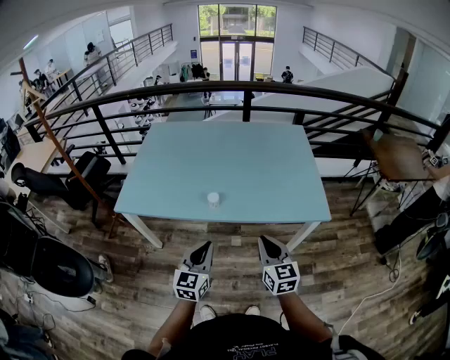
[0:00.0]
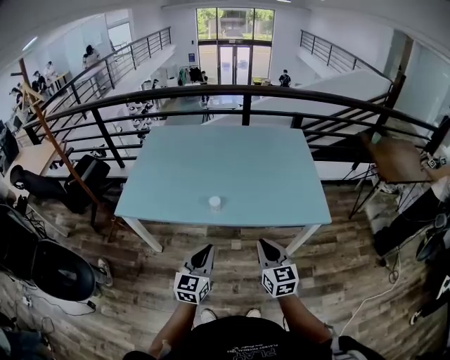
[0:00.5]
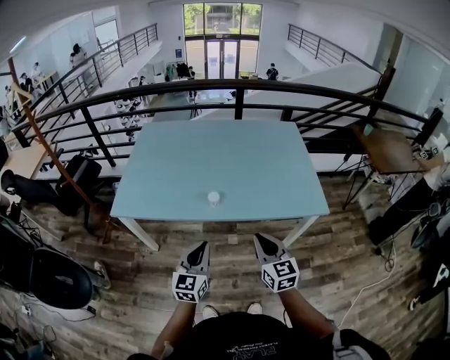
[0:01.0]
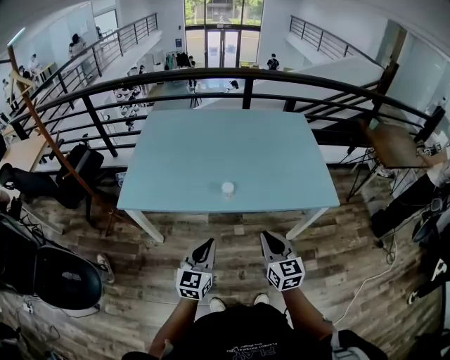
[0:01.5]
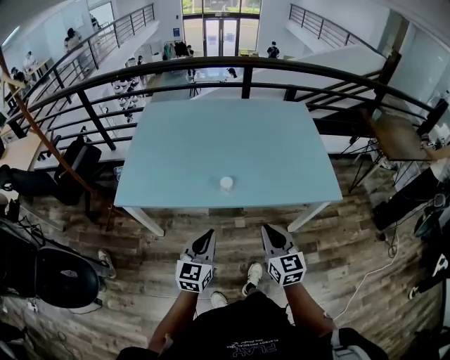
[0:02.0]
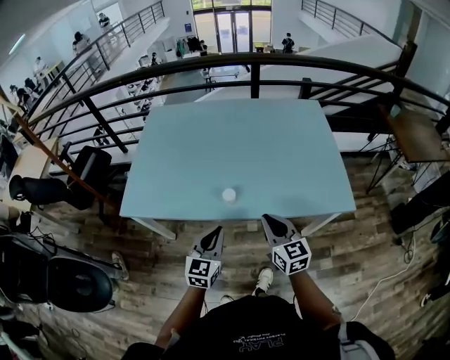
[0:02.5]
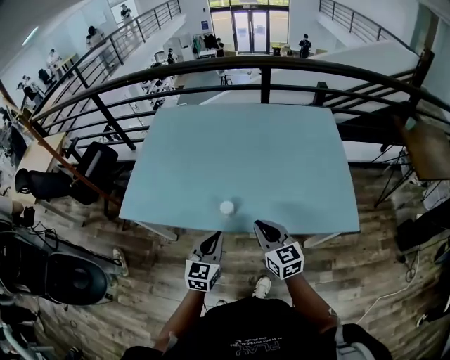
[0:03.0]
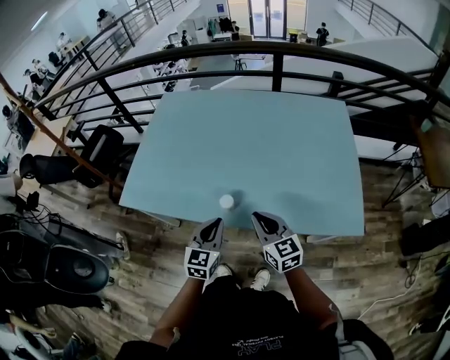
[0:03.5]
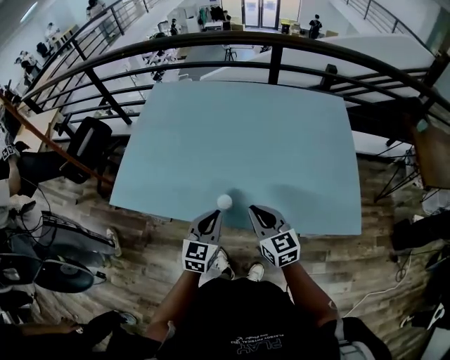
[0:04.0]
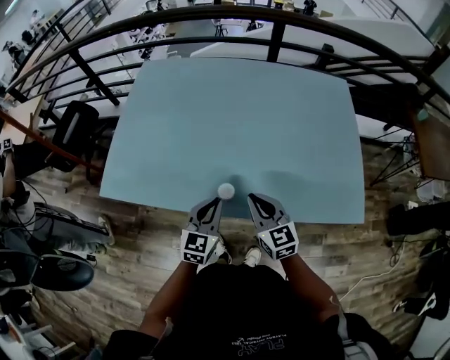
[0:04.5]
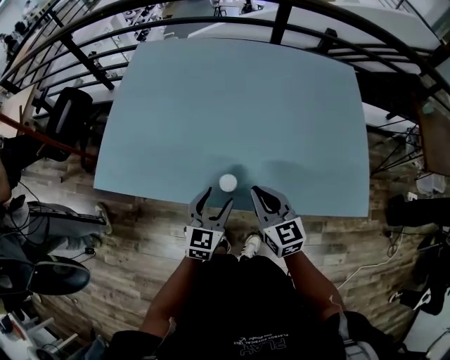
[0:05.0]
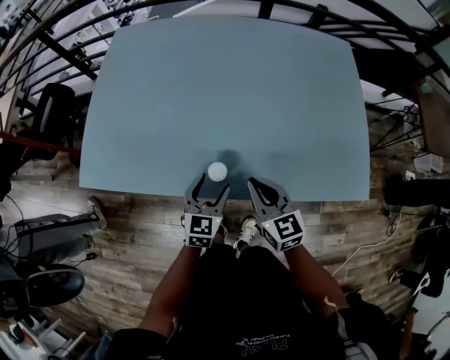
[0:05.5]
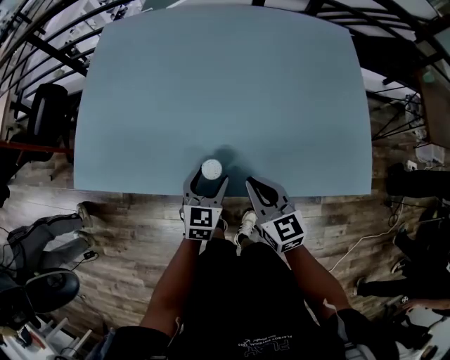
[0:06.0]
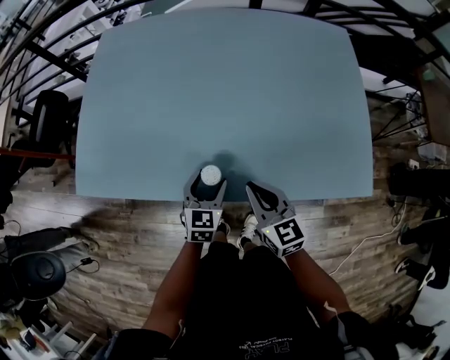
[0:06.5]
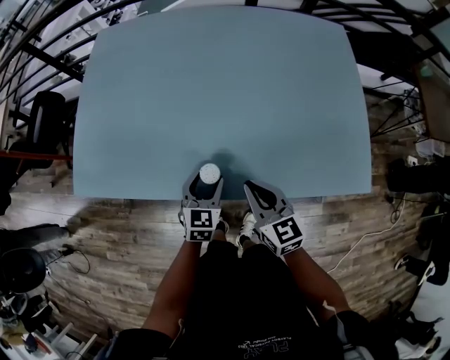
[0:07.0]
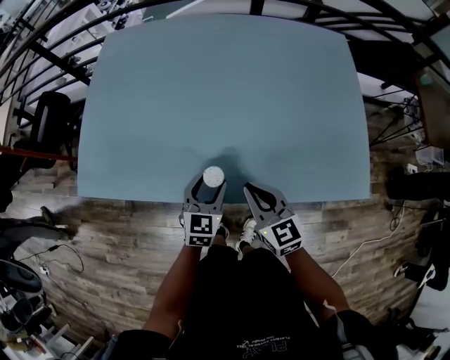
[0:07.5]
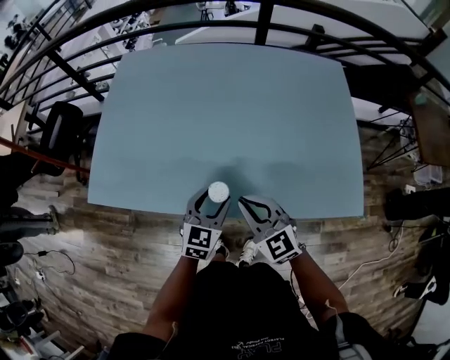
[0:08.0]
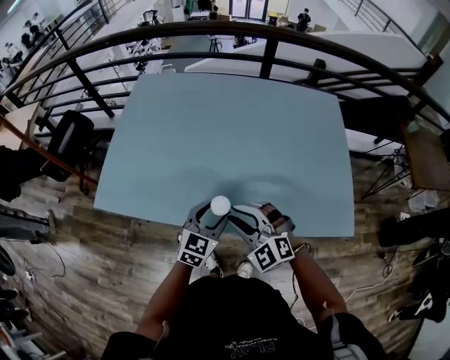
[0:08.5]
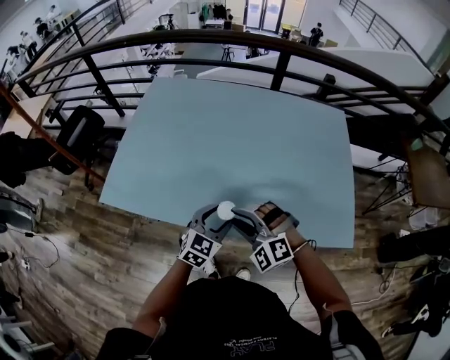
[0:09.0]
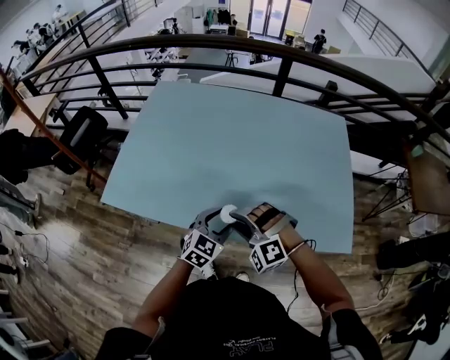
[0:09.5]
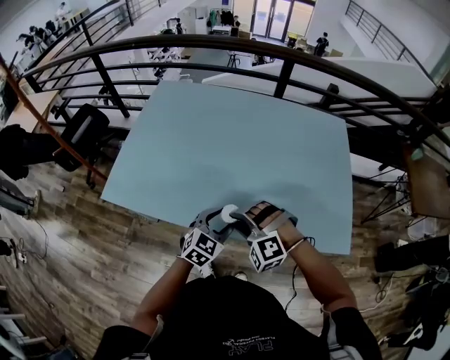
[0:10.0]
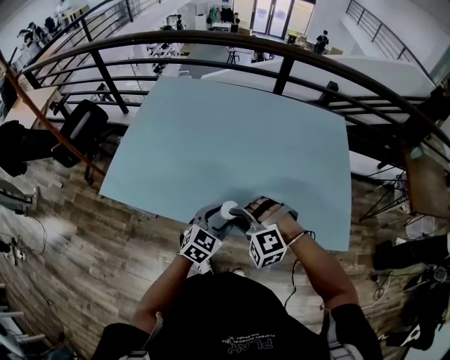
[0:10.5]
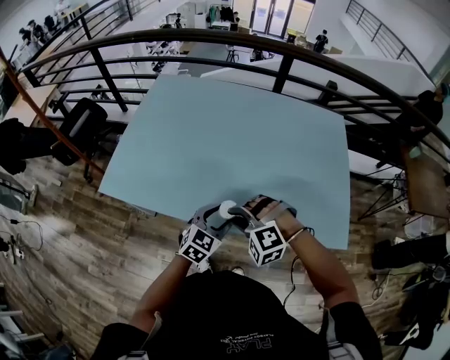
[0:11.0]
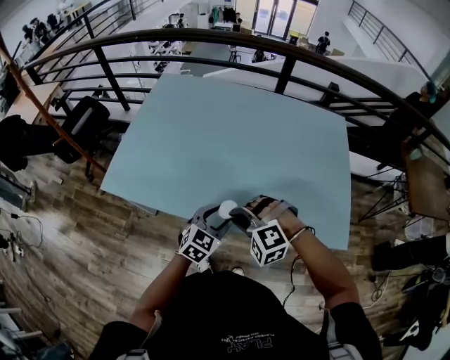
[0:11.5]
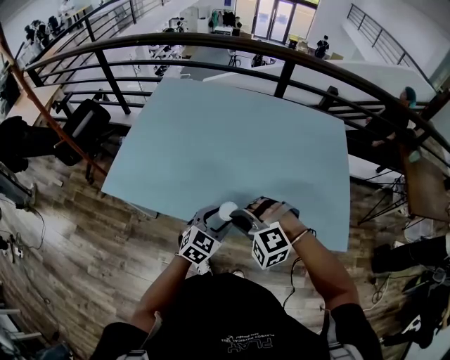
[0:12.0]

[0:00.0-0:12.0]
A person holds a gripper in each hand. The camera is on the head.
0.0 to 2.0 s: Both grippers move to the left, roughly 10 cm.
2.0 to 4.0 s: Both grippers travel together forward, some 20 cm. The right gripper turns by some 20 degrees.
4.0 to 6.0 s: The right gripper is displaced downward by approximately 10 cm. Meanwhile the left gripper is displaced downward and forward by roughly 15 cm, and opens its fingers.
6.0 to 8.0 s: Both grippers travel together upward, about 10 cm. The right gripper rotates about 30 degrees.
8.0 to 10.0 s: The left gripper moves some 5 cm. The right gripper moves roughly 5 cm, twists roughly 60 degrees counterclockwise, seen from behind, and opens its fingers.
10.0 to 12.0 s: The grippers stay close to where they were, moving slightly.

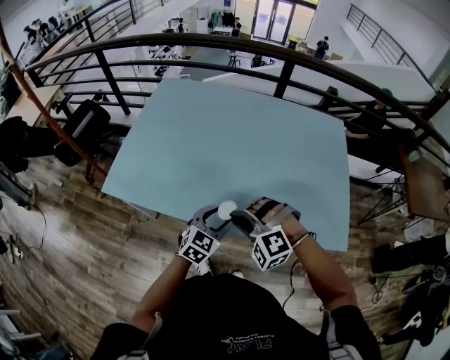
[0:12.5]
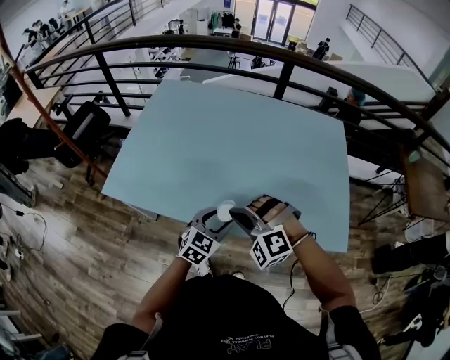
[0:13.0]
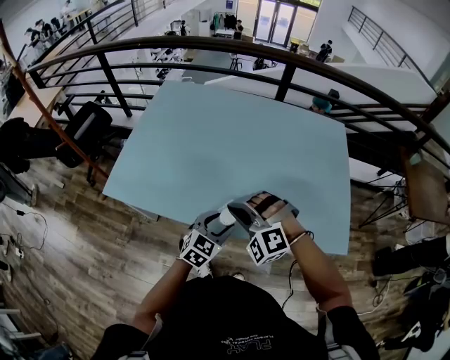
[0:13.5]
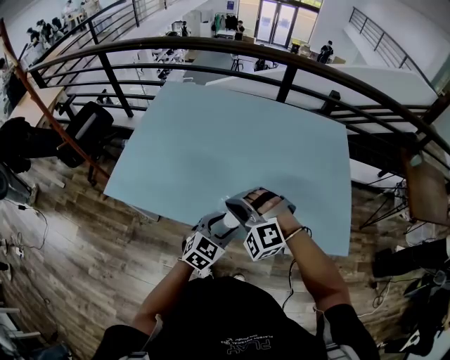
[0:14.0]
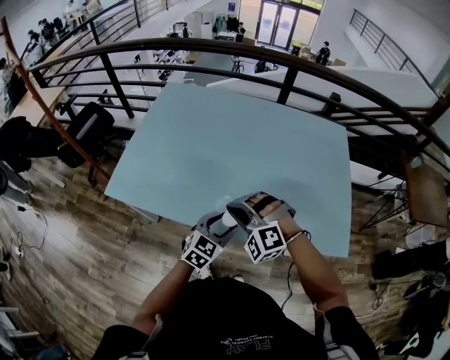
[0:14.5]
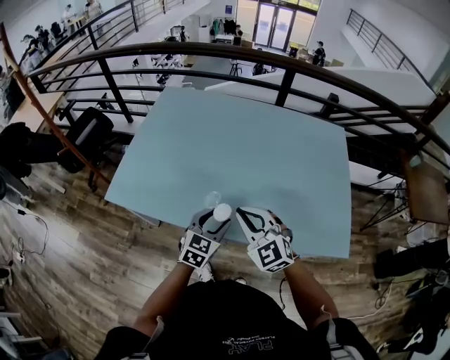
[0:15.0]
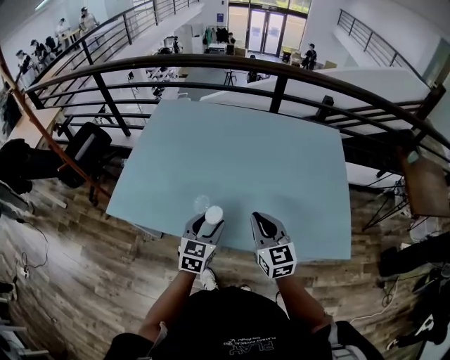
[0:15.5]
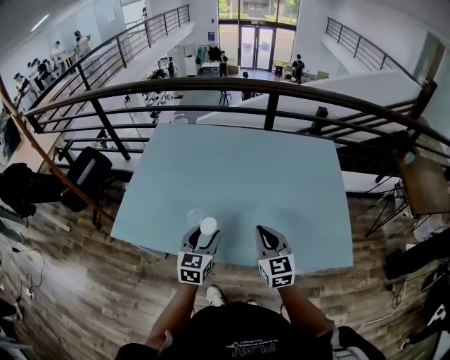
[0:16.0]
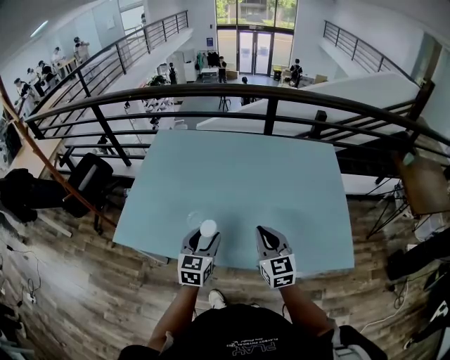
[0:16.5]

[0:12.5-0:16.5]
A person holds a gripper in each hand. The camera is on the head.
12.5 to 14.5 s: There are only small adjustments of the grippers.
14.5 to 16.5 s: The left gripper is displaced to the left, upward and forward by some 10 cm, and swivels some 20 degrees. Meanwhile the right gripper is displaced to the right by approximately 10 cm, and rolls clockwise, seen from behind, by roughly 70 degrees.

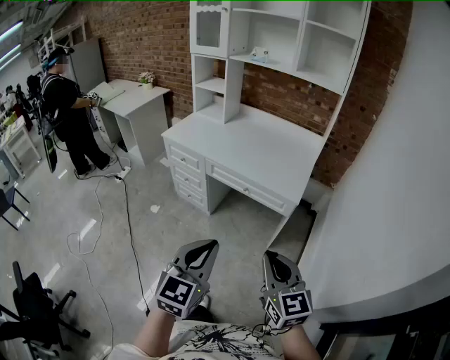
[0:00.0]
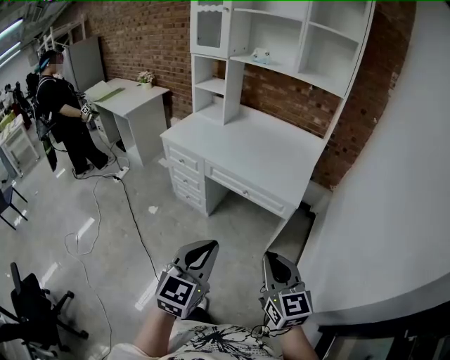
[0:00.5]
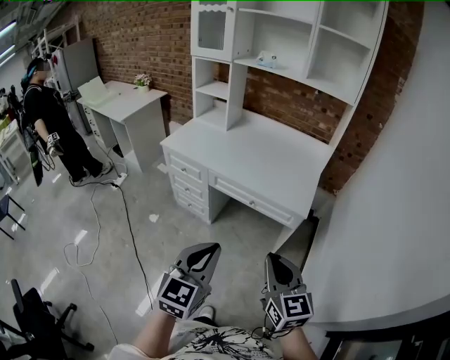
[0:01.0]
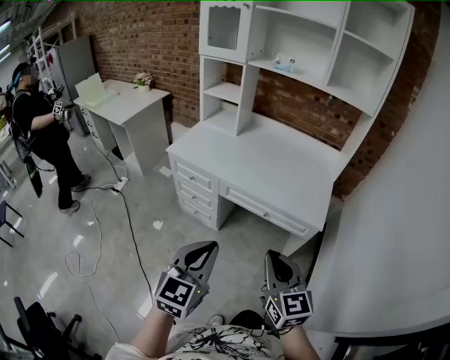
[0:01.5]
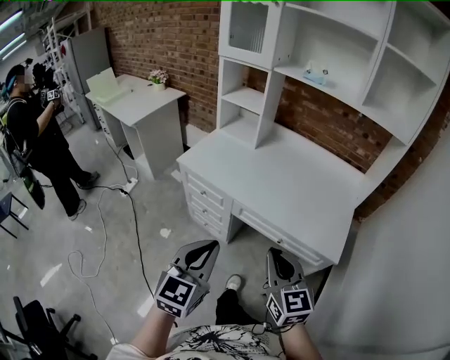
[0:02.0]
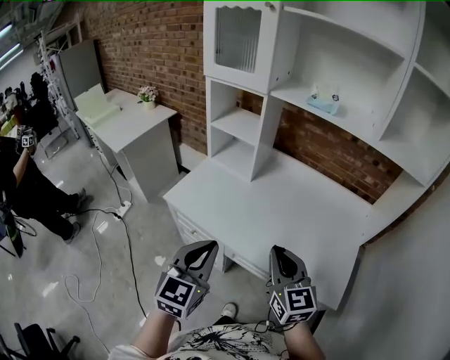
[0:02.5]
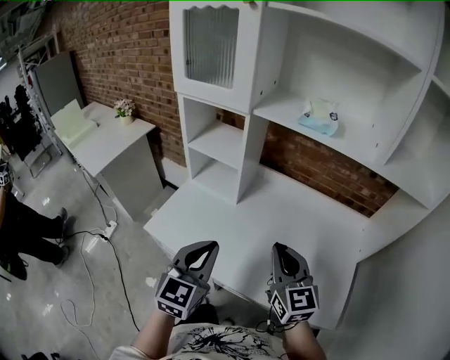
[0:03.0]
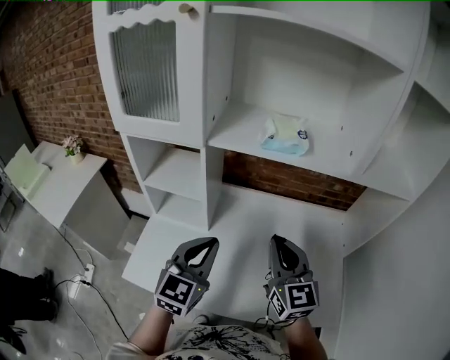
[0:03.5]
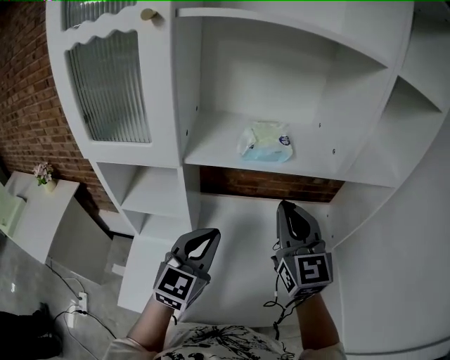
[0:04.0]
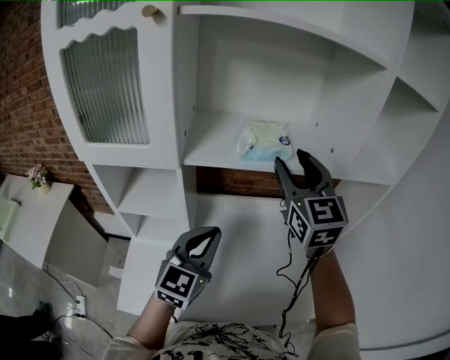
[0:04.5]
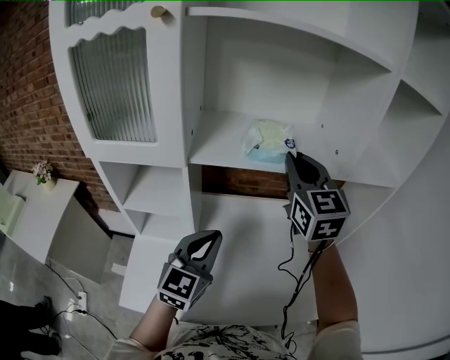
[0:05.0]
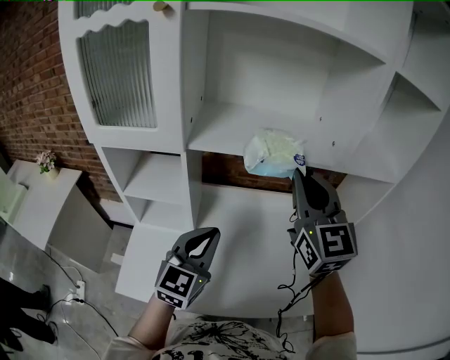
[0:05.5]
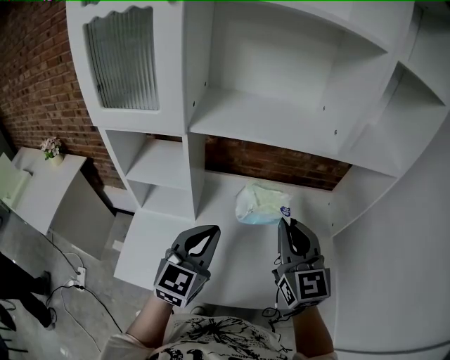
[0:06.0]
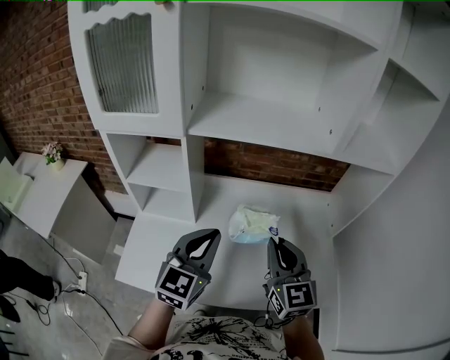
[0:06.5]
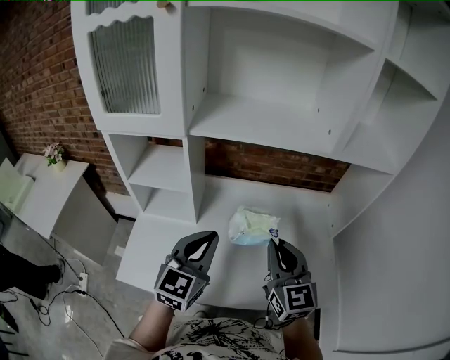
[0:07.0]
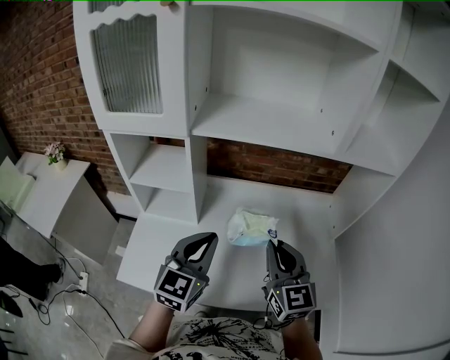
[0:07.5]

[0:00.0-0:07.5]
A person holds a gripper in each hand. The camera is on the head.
0.0 to 2.0 s: Both grippers move forward and to the left, some 35 cm.
2.0 to 4.0 s: The two grippers travel together, some 60 cm. The right gripper swivels about 40 degrees. The left gripper rotates approximately 30 degrees.
4.0 to 5.5 s: The right gripper moves upward, approximately 5 cm, travels forward and back again, about 10 cm each way, and opens, then closes again.
5.5 to 7.5 s: The right gripper travels downward and backward by approximately 20 cm. The left gripper moves about 5 cm.

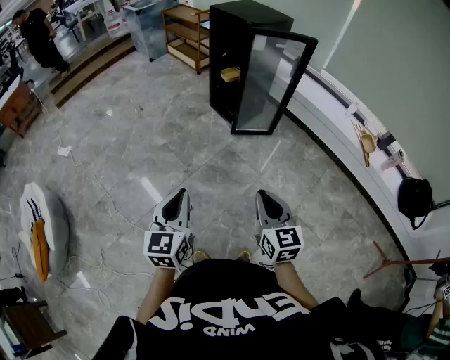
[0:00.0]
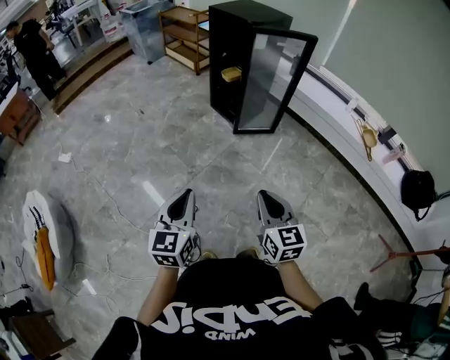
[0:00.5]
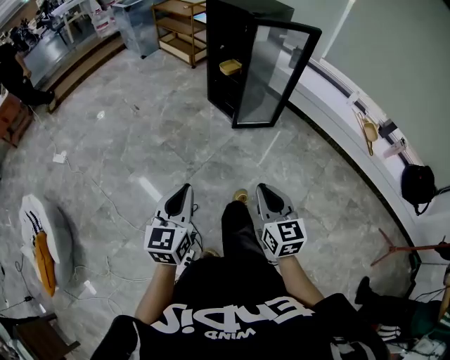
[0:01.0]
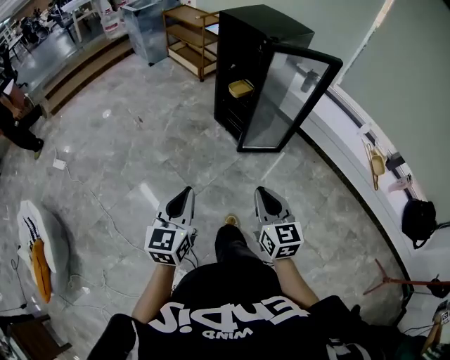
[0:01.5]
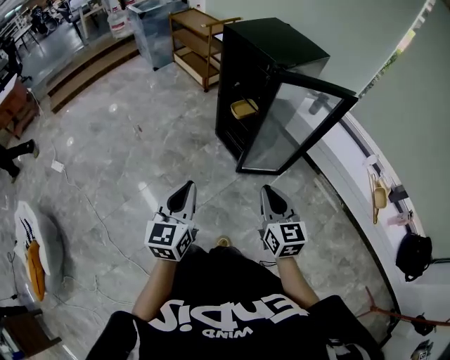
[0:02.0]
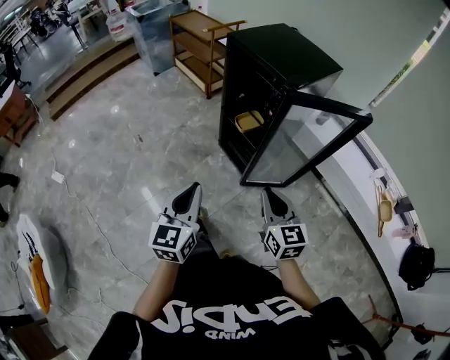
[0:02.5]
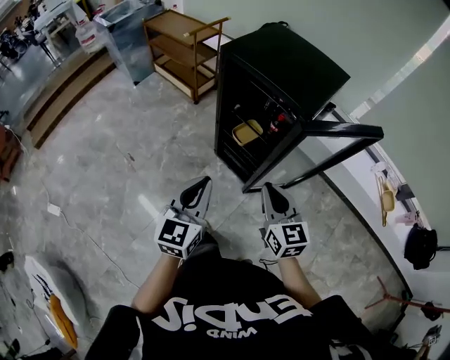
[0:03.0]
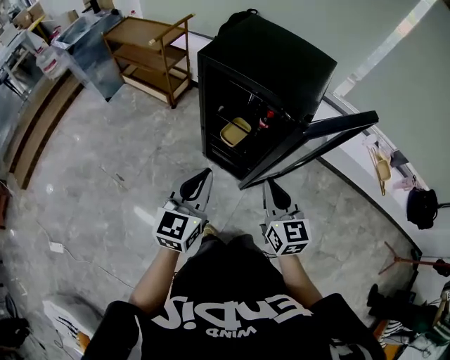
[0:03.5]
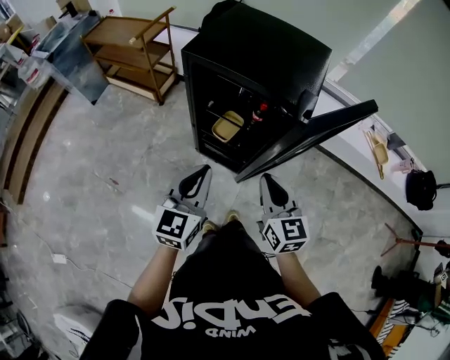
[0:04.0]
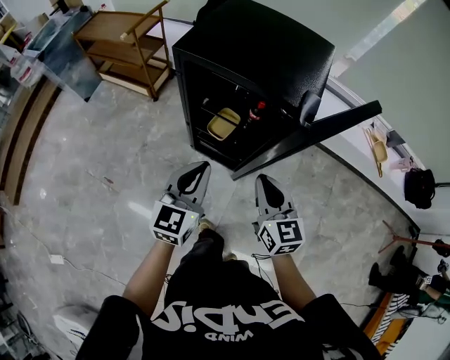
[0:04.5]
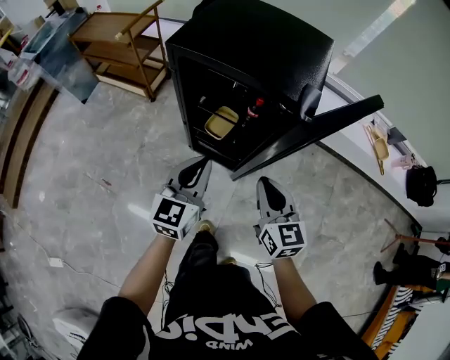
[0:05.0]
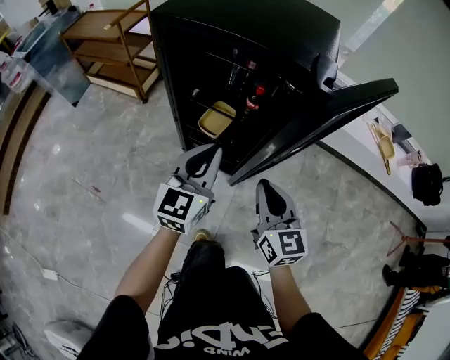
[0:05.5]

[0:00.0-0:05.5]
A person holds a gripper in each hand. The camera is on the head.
0.0 to 2.0 s: Both grippers travel together forward, roughly 40 cm.
2.0 to 3.5 s: The left gripper ends up roughly 40 cm from where it was, and rotates approximately 30 degrees. Meanwhile the right gripper shifts by some 30 cm, and swivels roughly 20 degrees.
3.5 to 5.5 s: The right gripper heads downward, covering roughly 15 cm. Meanwhile the left gripper shifts about 20 cm downward, forward and to the right.
